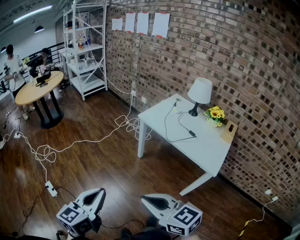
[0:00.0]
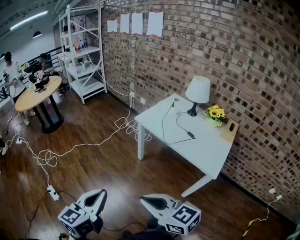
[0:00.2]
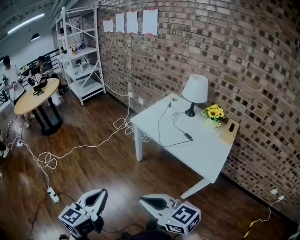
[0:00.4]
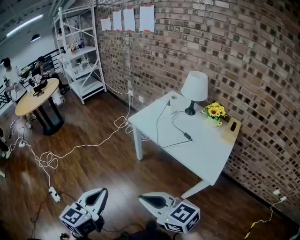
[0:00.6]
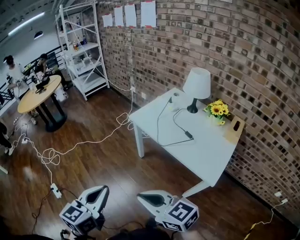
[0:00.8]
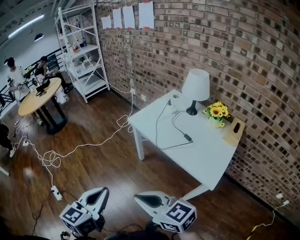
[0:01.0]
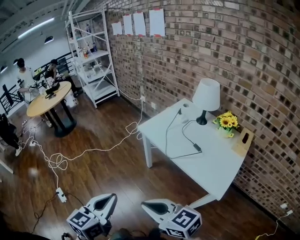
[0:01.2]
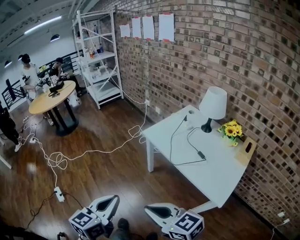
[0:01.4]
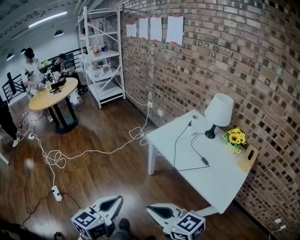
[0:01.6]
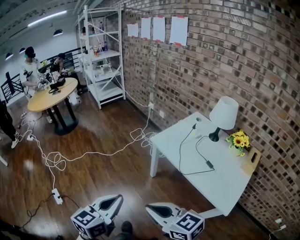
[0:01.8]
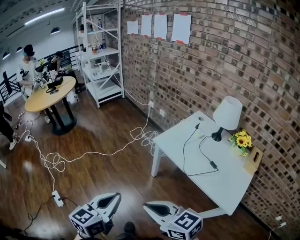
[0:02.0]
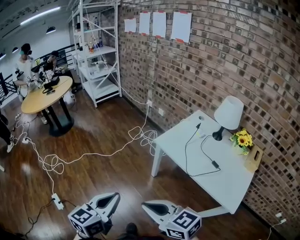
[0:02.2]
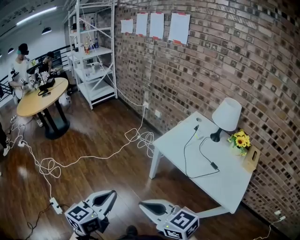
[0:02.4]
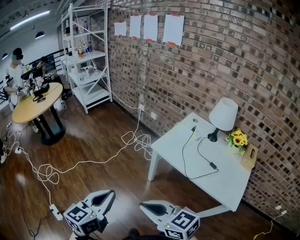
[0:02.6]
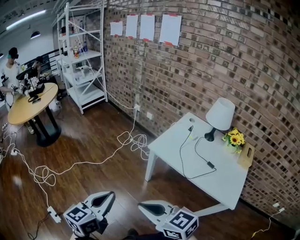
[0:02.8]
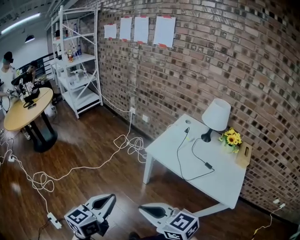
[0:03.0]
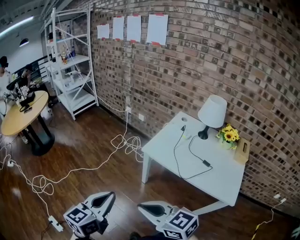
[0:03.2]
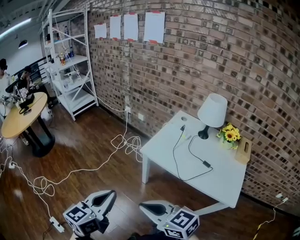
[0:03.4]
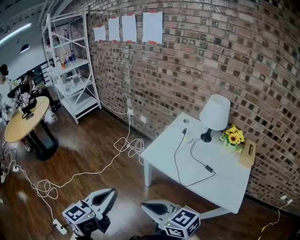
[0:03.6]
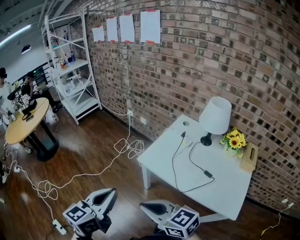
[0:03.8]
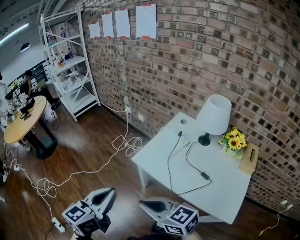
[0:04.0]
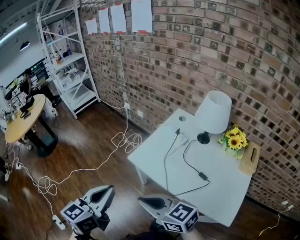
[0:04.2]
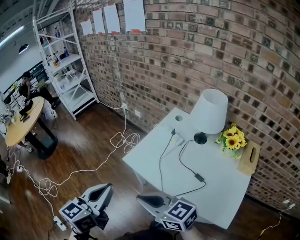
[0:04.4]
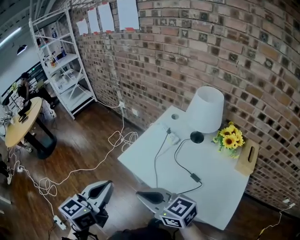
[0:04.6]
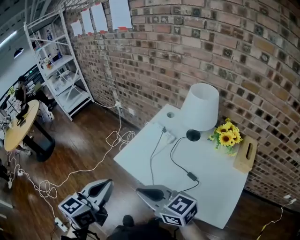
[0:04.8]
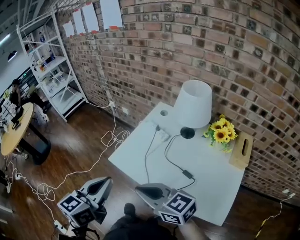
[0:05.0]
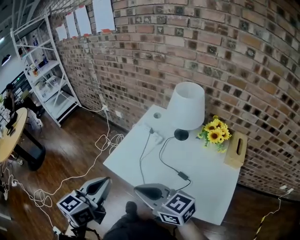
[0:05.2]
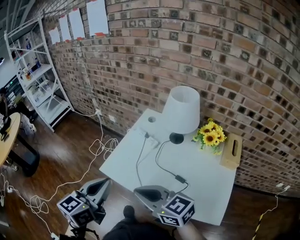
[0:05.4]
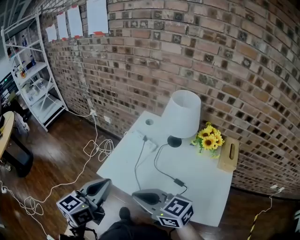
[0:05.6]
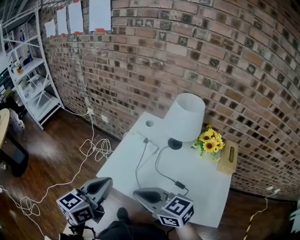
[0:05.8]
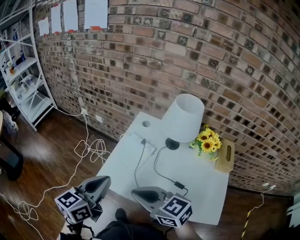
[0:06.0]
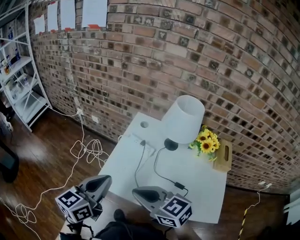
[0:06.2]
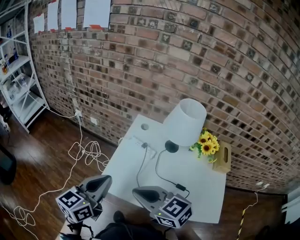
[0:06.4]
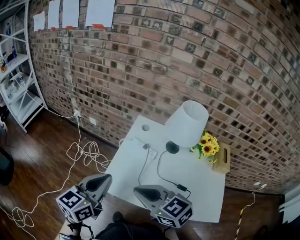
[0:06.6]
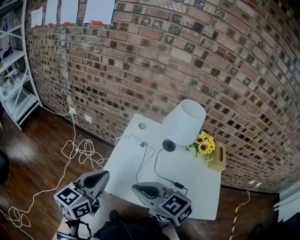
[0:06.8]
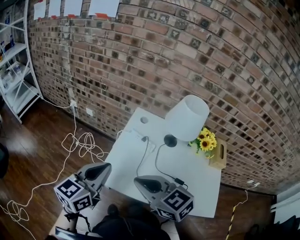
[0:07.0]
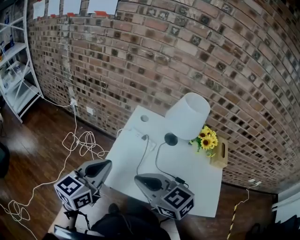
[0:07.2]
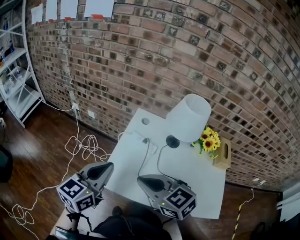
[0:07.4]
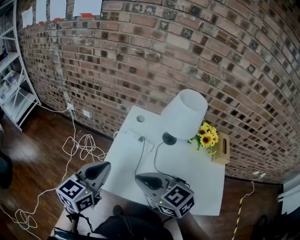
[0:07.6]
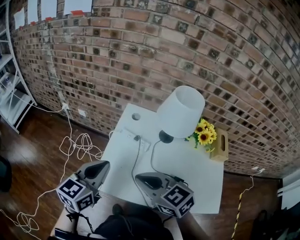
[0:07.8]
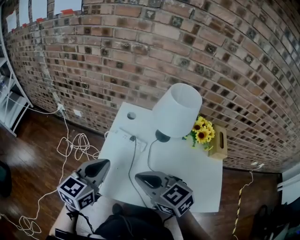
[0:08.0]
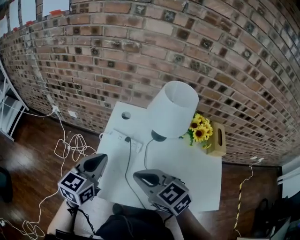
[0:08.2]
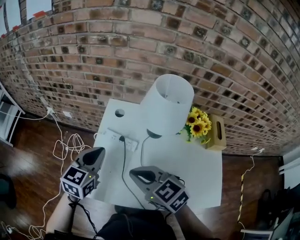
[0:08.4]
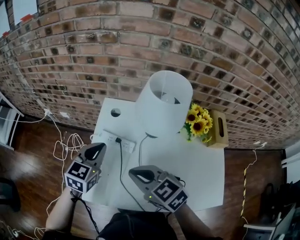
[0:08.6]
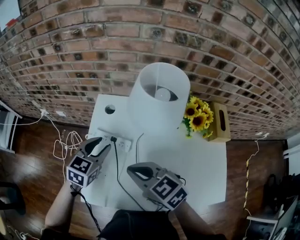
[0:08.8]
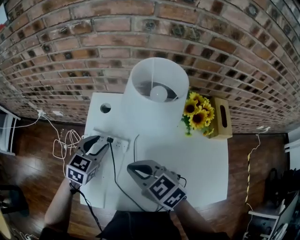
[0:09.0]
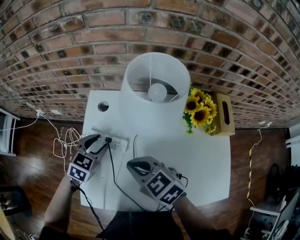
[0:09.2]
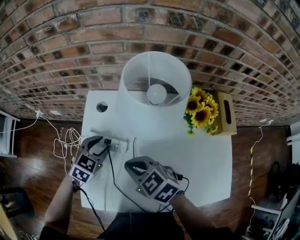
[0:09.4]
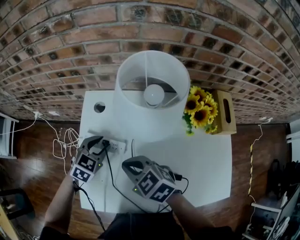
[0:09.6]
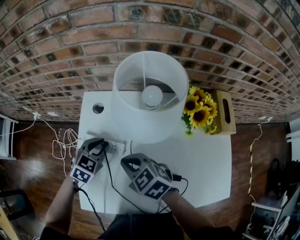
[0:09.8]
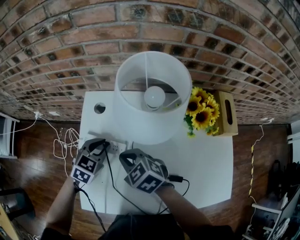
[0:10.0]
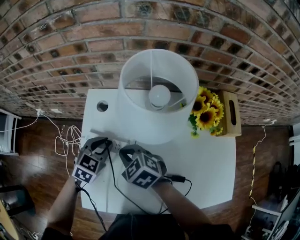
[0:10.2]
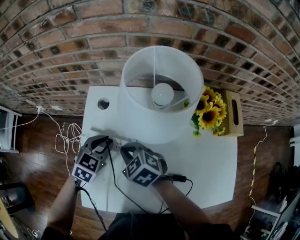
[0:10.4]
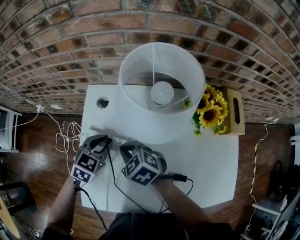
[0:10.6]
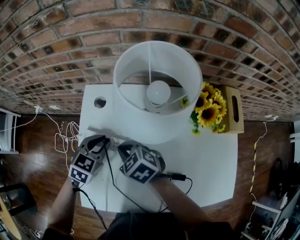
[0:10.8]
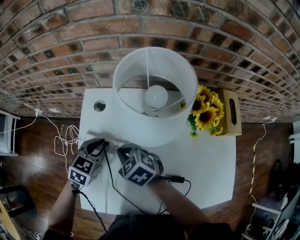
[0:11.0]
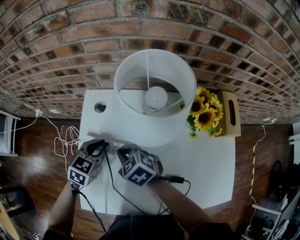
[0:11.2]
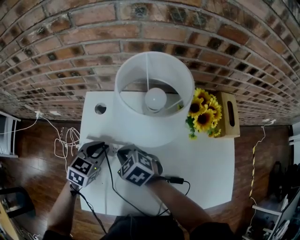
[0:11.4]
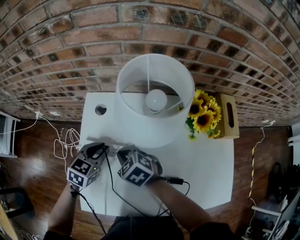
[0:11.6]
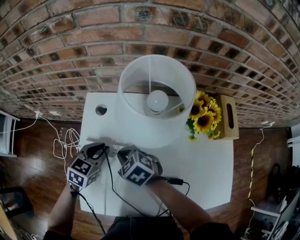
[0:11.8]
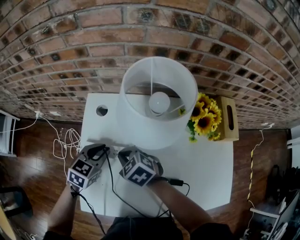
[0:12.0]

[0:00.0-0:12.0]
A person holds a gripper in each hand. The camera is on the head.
0:00.0 to 0:01.6: The right gripper heads forward and to the right, covering some 15 cm, while the left gripper heads to the right and forward, covering approximately 20 cm.
0:01.6 to 0:03.0: The two grippers go some 20 cm forward and to the left.
0:03.0 to 0:04.4: Both grippers move to the right and forward, about 25 cm.
0:04.4 to 0:06.0: Both grippers travel together forward and to the right, approximately 15 cm.
0:06.0 to 0:07.6: The two grippers go about 10 cm forward.
0:07.6 to 0:09.0: The left gripper goes approximately 30 cm forward, downward and to the right, changes its angle by approximately 40 degrees, and opens, while the right gripper travels forward, to the right and downward by roughly 20 cm.
0:09.0 to 0:10.4: The right gripper goes some 15 cm downward and forward. The left gripper moves downward, about 5 cm.
0:10.4 to 0:12.0: The grippers stay close to where they were, moving slightly.

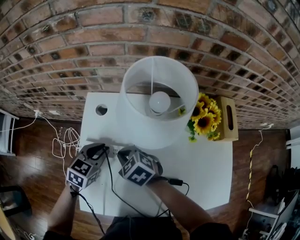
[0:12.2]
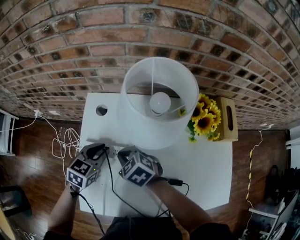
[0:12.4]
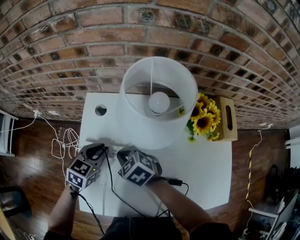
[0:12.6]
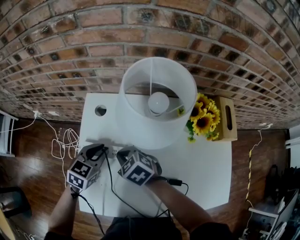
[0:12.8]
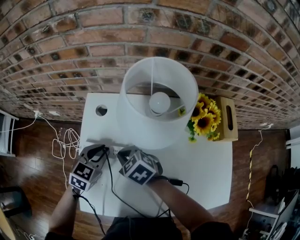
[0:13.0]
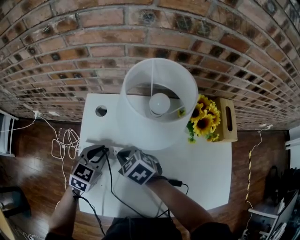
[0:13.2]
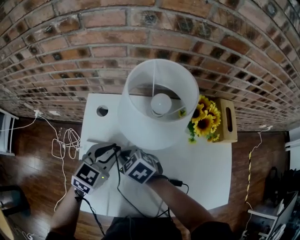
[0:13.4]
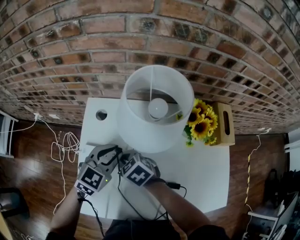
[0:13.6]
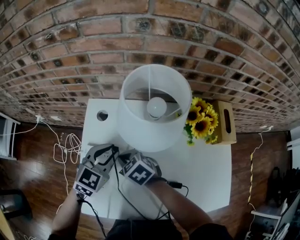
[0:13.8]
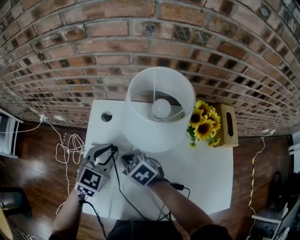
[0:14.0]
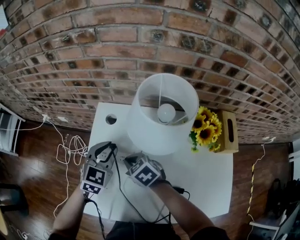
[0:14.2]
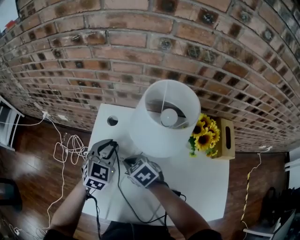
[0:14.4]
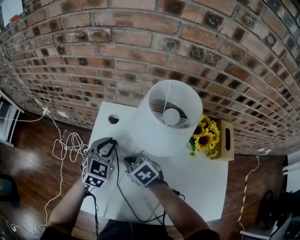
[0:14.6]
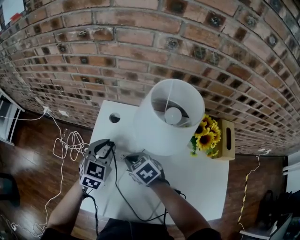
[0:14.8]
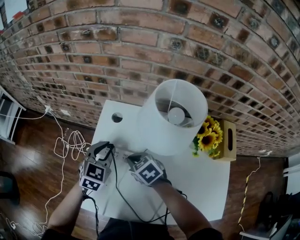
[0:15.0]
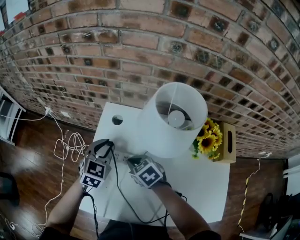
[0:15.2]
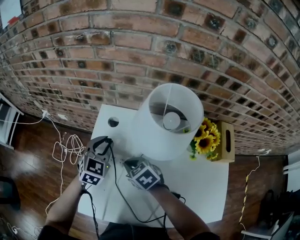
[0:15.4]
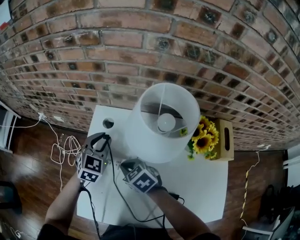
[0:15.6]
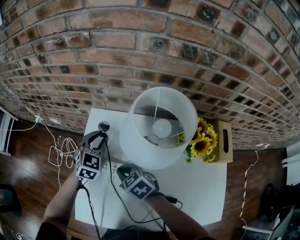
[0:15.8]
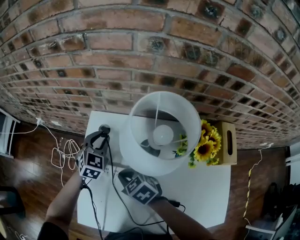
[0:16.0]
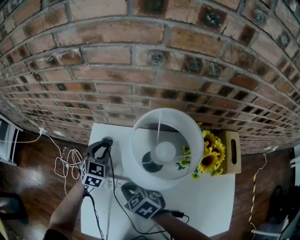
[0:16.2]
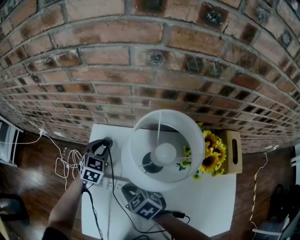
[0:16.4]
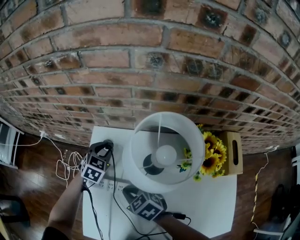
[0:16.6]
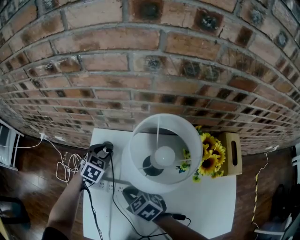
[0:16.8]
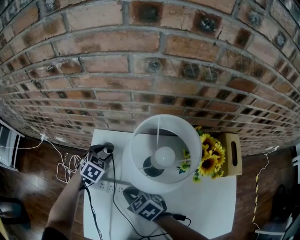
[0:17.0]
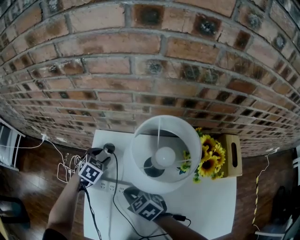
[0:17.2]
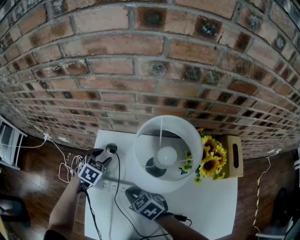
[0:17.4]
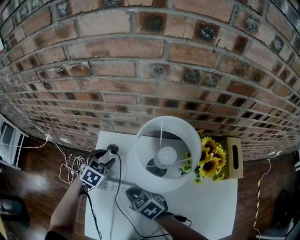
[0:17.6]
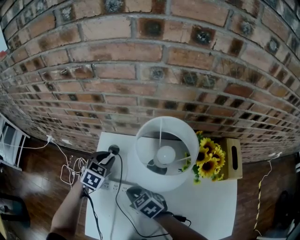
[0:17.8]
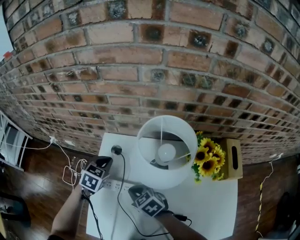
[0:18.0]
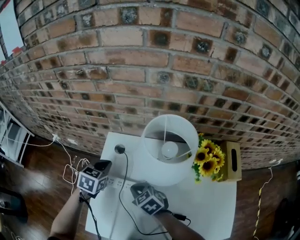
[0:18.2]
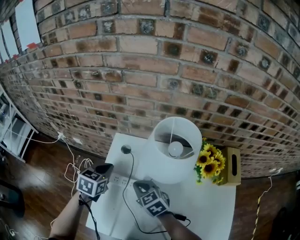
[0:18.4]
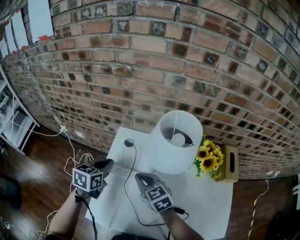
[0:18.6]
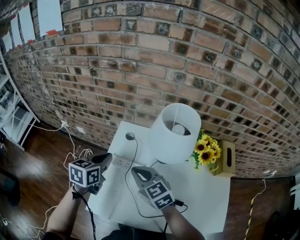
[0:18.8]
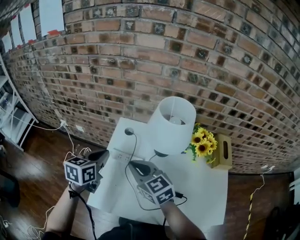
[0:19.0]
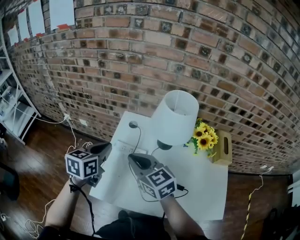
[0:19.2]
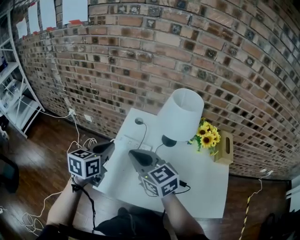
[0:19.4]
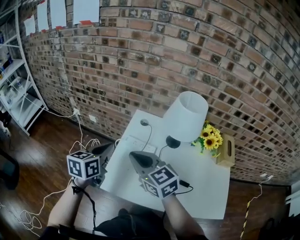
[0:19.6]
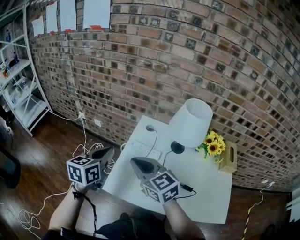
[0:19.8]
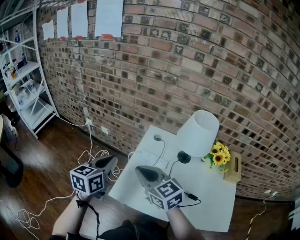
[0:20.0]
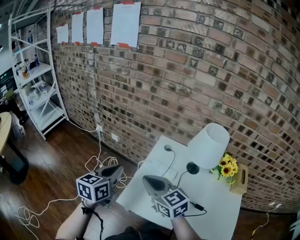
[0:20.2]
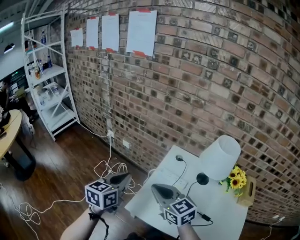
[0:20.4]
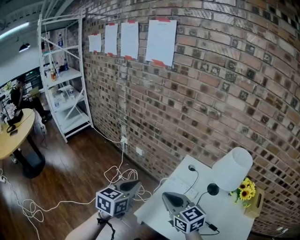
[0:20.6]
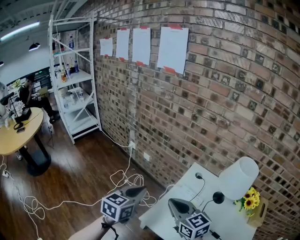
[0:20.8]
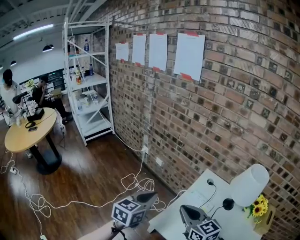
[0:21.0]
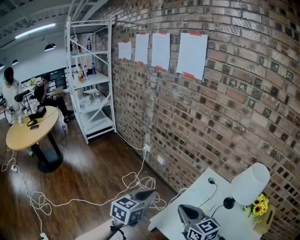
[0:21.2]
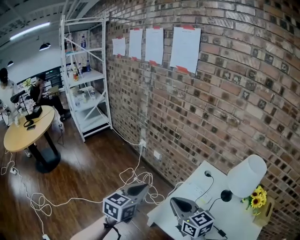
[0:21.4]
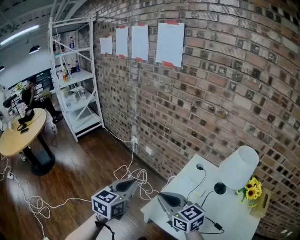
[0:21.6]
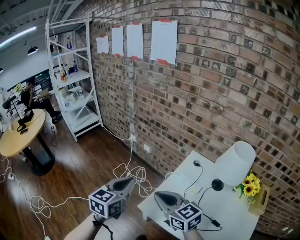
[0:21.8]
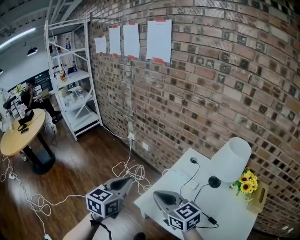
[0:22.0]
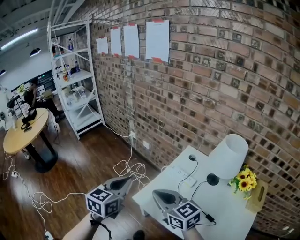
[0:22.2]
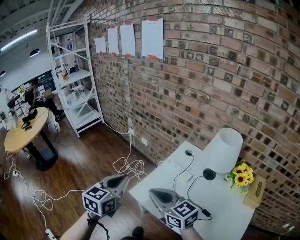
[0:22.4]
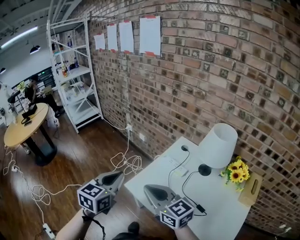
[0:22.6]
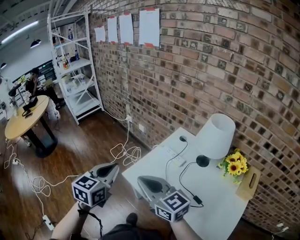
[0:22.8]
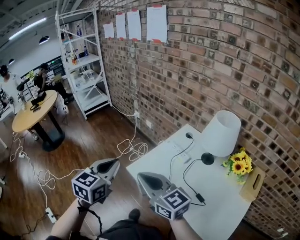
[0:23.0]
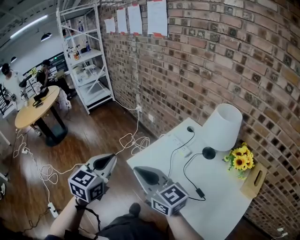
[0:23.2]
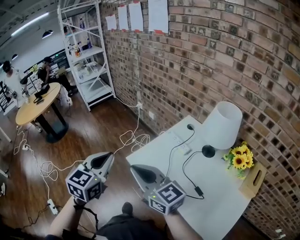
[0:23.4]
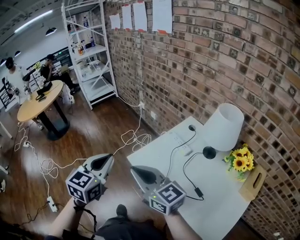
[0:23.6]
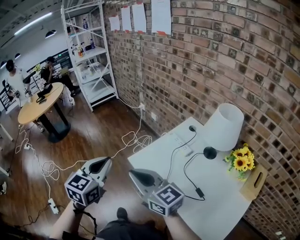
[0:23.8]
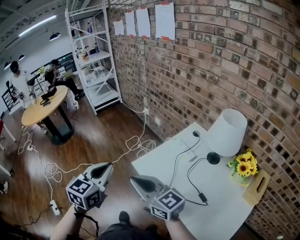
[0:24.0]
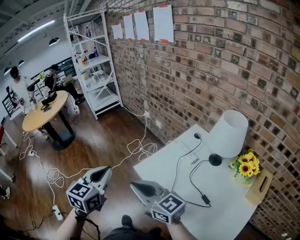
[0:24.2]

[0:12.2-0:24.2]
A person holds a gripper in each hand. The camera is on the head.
0:12.2 to 0:13.8: The left gripper is displaced upward and to the right by roughly 10 cm.
0:13.8 to 0:15.2: The left gripper travels to the left and forward by some 10 cm.
0:15.2 to 0:16.6: The left gripper goes approximately 15 cm forward, downward and to the right.
0:16.6 to 0:18.2: The left gripper travels to the left, backward and upward by some 10 cm, and closes up.
0:18.2 to 0:19.8: The right gripper travels upward, to the left and backward by roughly 30 cm, and swivels approximately 30 degrees, while the left gripper heads backward, upward and to the left, covering approximately 30 cm, and turns by approximately 40 degrees.
0:19.8 to 0:21.2: The left gripper goes some 15 cm to the left; the right gripper goes approximately 10 cm to the left.
0:21.2 to 0:22.6: Both grippers move backward, roughly 15 cm.
0:22.6 to 0:24.2: The two grippers go some 10 cm to the left and backward. The right gripper changes its angle by some 20 degrees.
